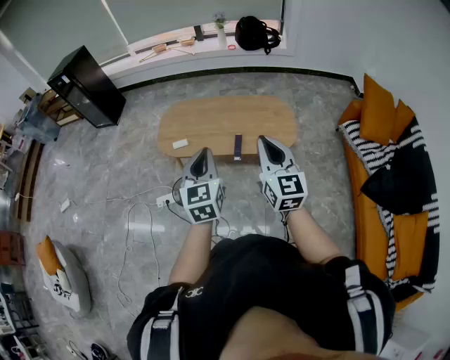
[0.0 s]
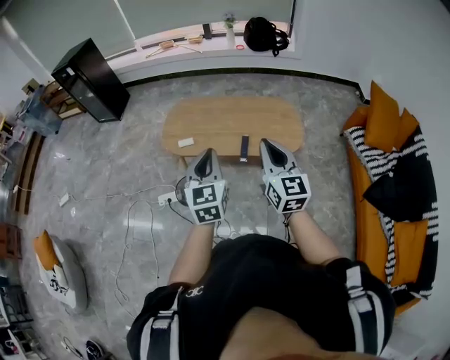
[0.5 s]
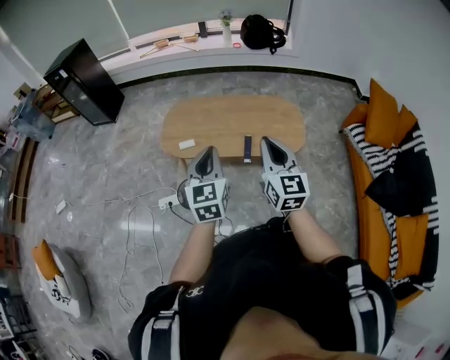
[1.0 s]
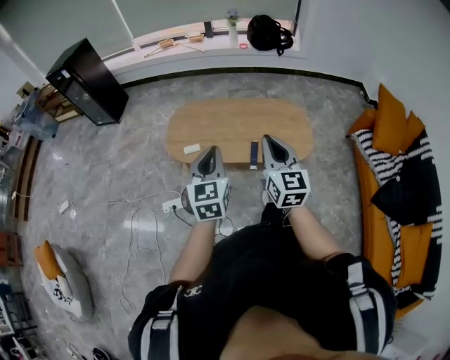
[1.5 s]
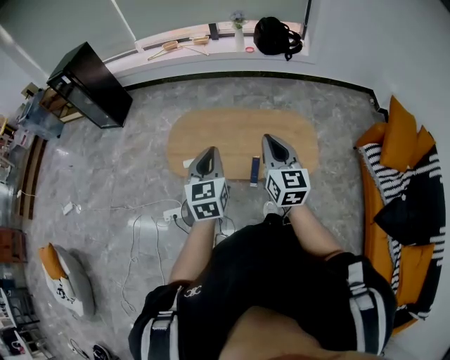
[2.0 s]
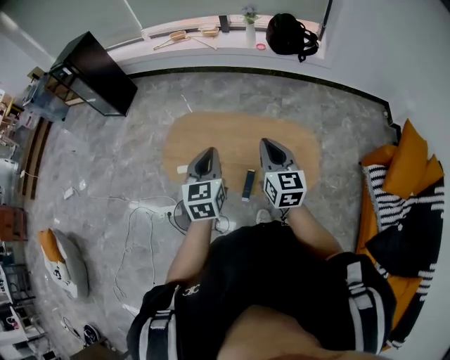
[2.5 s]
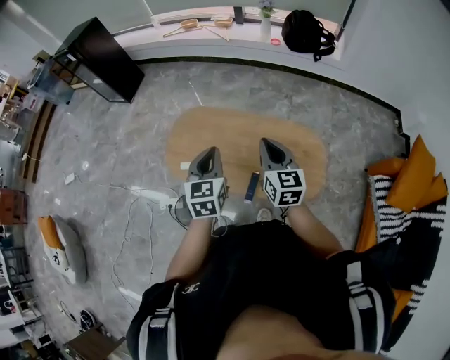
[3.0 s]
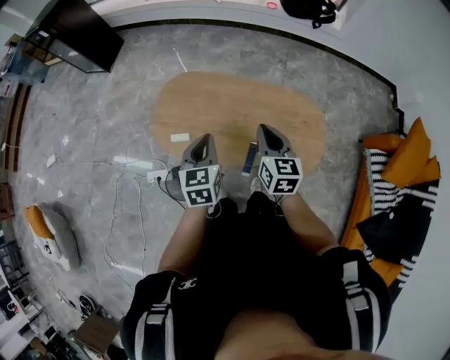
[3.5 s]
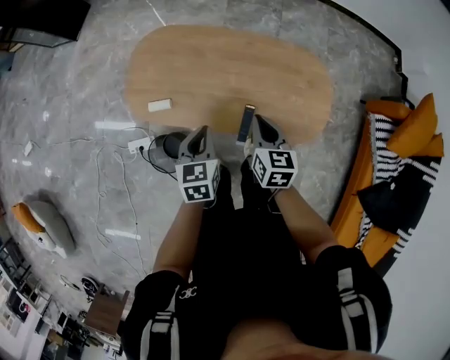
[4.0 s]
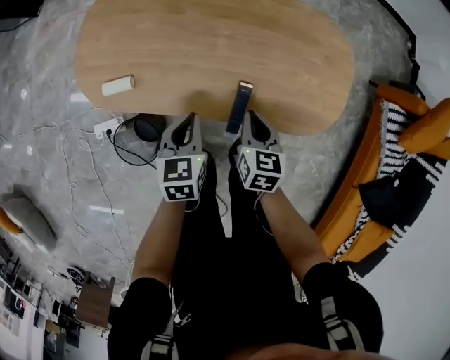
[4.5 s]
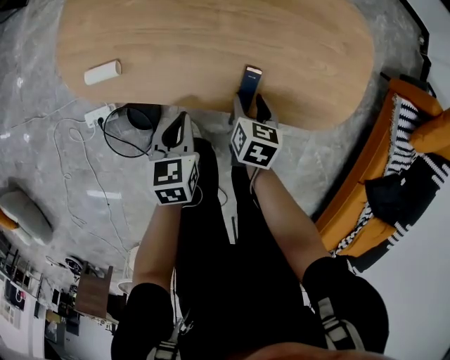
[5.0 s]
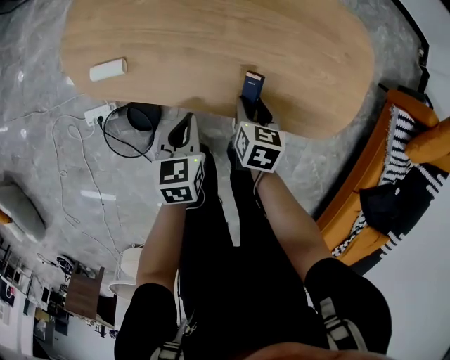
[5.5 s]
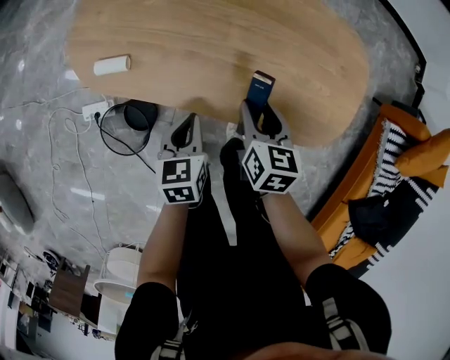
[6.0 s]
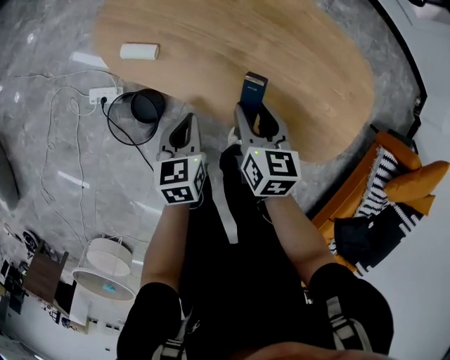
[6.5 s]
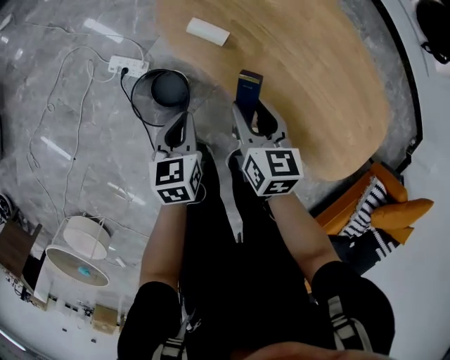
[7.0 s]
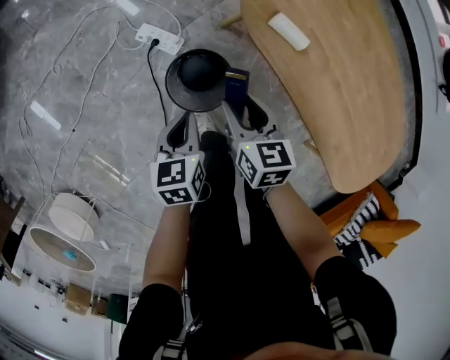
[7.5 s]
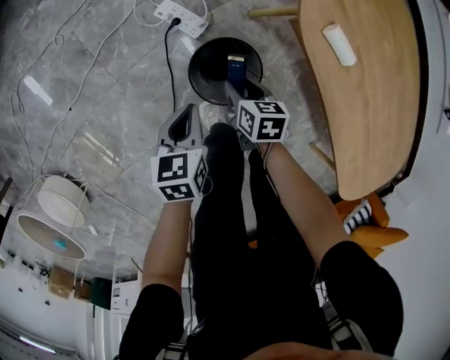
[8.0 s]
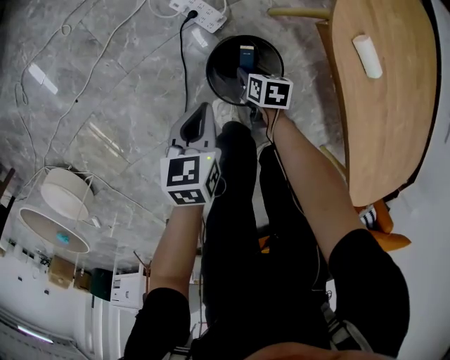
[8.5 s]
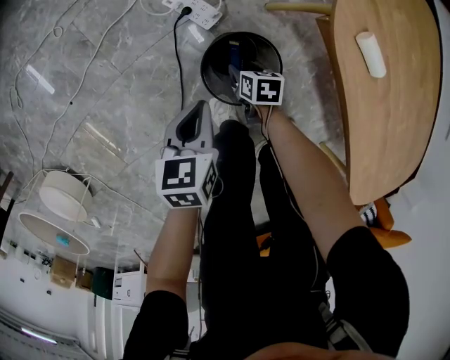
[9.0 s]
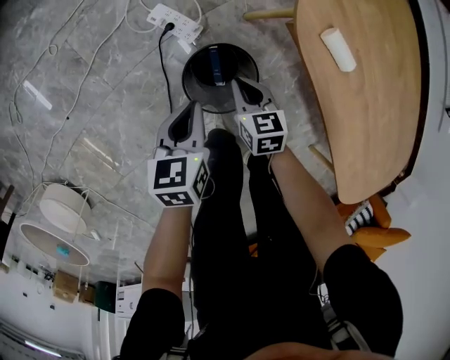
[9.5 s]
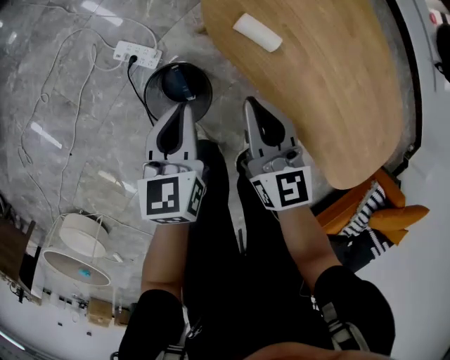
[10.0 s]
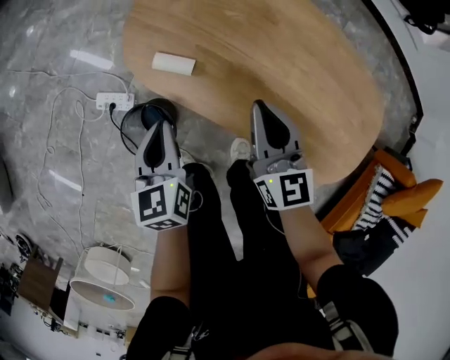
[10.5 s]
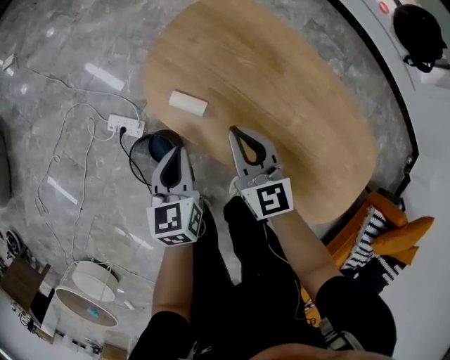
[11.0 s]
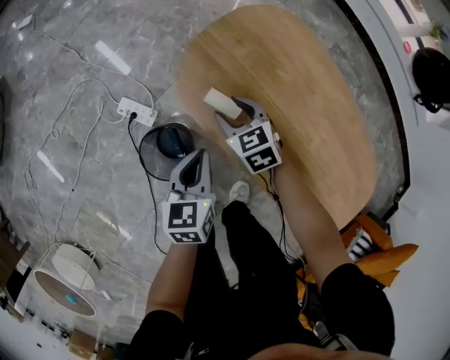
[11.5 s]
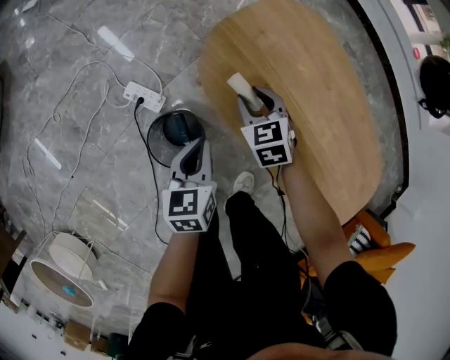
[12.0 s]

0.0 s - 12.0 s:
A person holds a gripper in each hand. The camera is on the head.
0.0 s - 2.0 s: The grippers both shift forward by roughly 20 cm.
2.0 s - 4.0 s: The grippers both shift downward and forward by about 30 cm. The right gripper tilts its fingers some 30 degrees downward. The left gripper swivels about 30 degrees.
4.0 s - 6.0 s: The two grippers go about 20 cm downward. The right gripper opens its fingers.
6.0 s - 8.0 s: Both grippers are carried roughly 50 cm. The left gripper changes its angle by about 40 degrees. Meanwhile the right gripper changes its angle by roughly 50 degrees.
8.0 s - 10.0 s: The right gripper heads upward and to the right, covering roughly 30 cm, points its fingers about 30 degrees further upward, and closes its fingers. Meanwhile the left gripper shifts roughly 20 cm to the right and upward.
10.0 s - 12.0 s: The right gripper is displaced forward and downward by approximately 15 cm, reaches about 20 cm to the right, then returns, changes its angle by some 40 degrees, and opens up. The left gripper goes about 5 cm to the right.

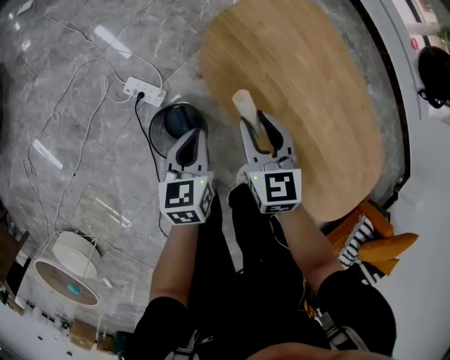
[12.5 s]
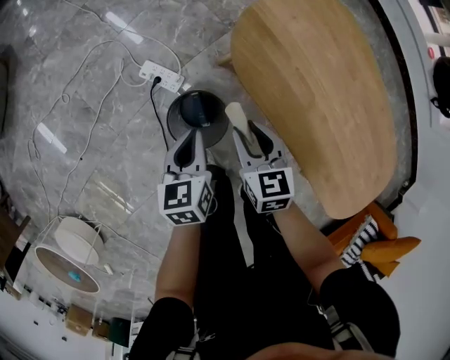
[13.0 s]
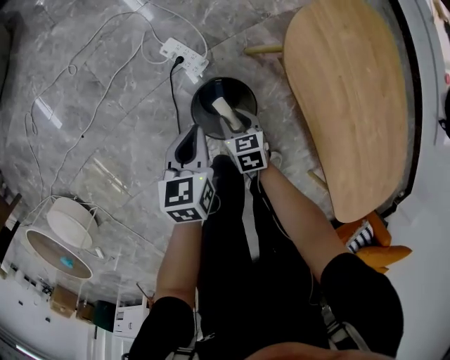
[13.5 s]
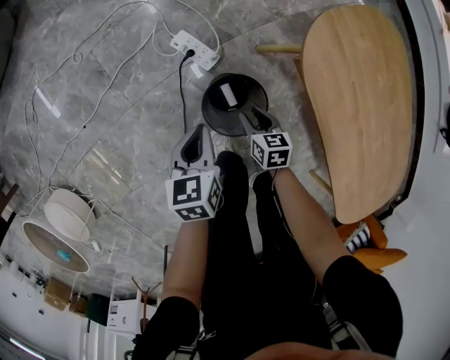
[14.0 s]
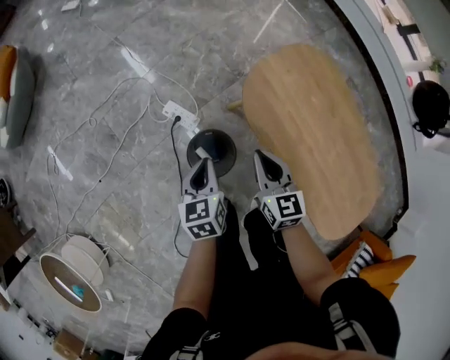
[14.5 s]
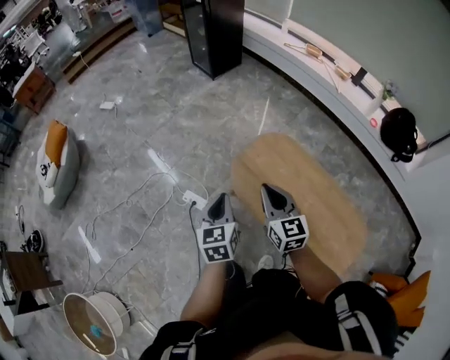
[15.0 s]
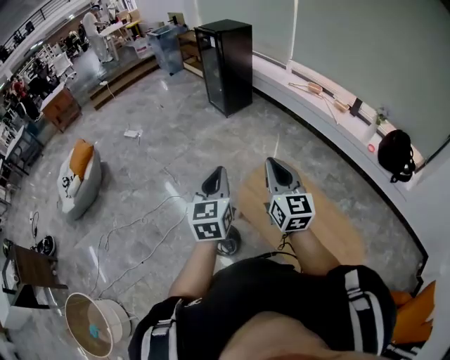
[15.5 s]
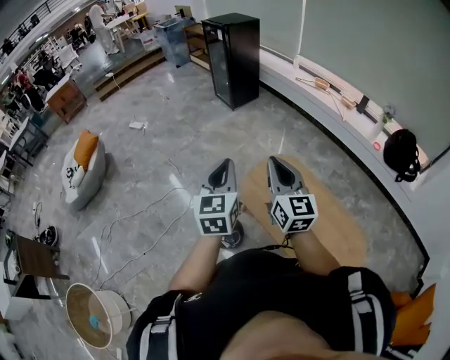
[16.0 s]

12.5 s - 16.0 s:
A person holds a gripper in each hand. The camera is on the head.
12.5 s - 14.5 s: The right gripper heads to the left, covering some 10 cm, reaches roughly 25 cm downward, then returns, and closes its fingers; the left gripper moves to the left and upward, roughly 15 cm.
14.5 s - 16.0 s: The grippers both shift upward by some 50 cm. The right gripper points its fingers approximately 30 degrees further upward. The left gripper angles its fingers upward, by some 30 degrees.

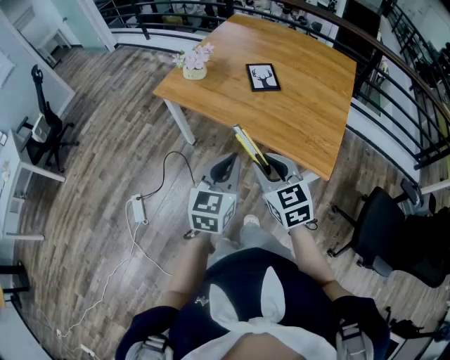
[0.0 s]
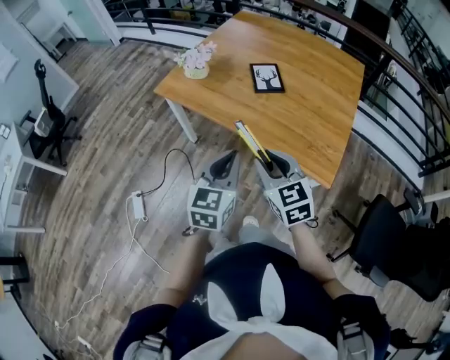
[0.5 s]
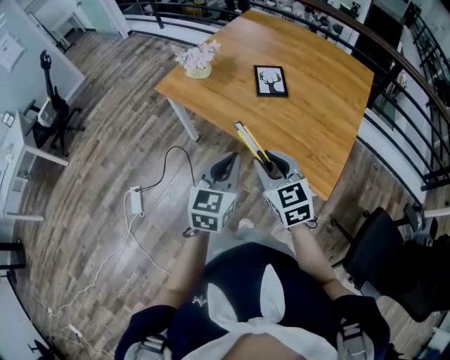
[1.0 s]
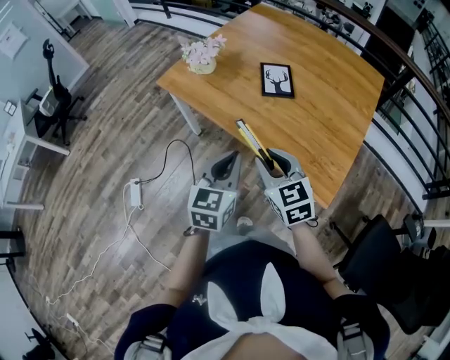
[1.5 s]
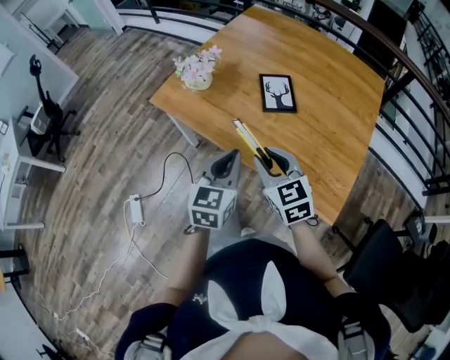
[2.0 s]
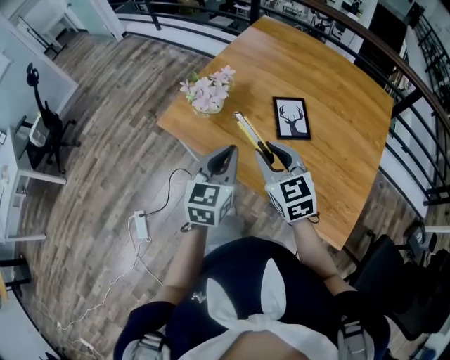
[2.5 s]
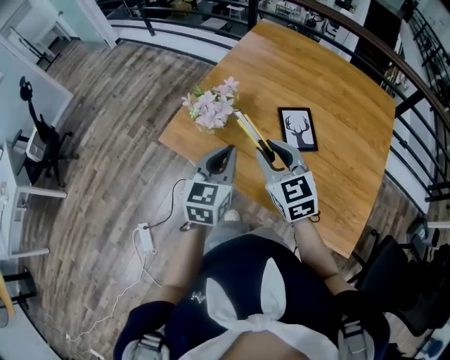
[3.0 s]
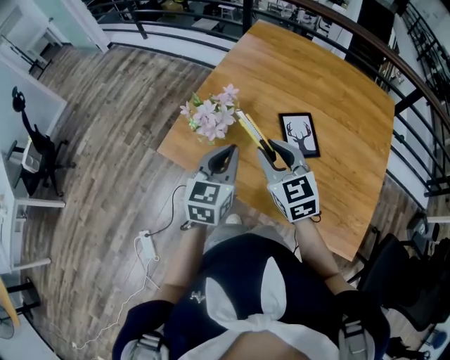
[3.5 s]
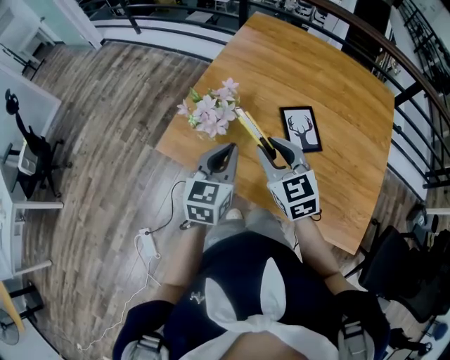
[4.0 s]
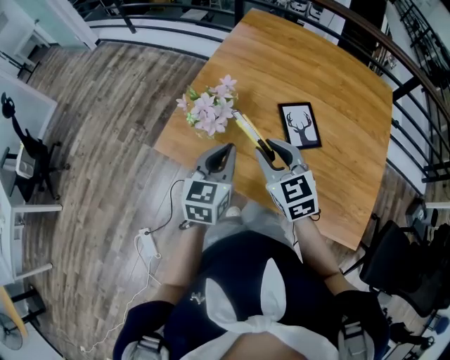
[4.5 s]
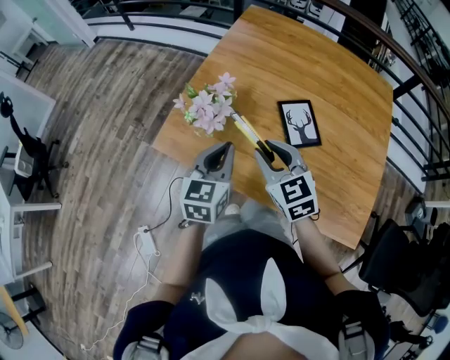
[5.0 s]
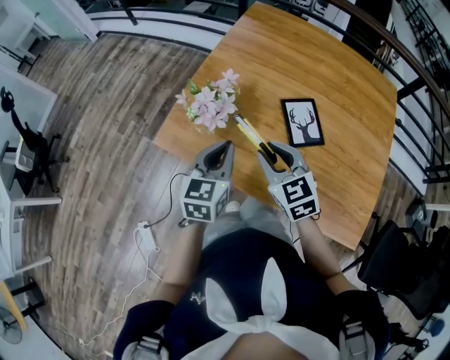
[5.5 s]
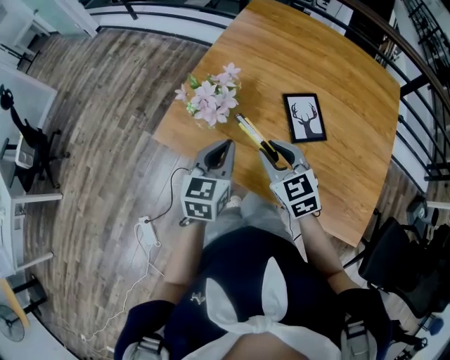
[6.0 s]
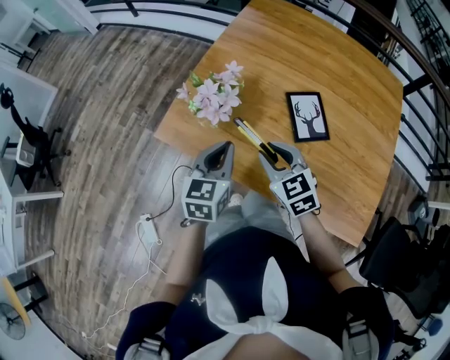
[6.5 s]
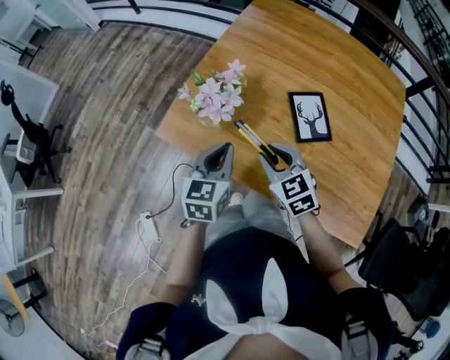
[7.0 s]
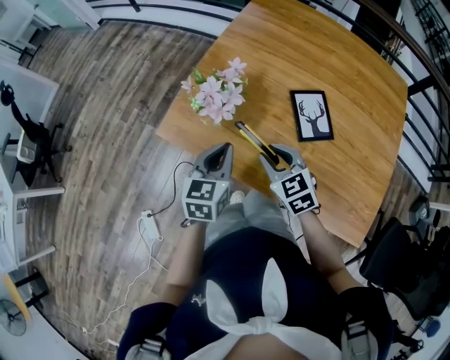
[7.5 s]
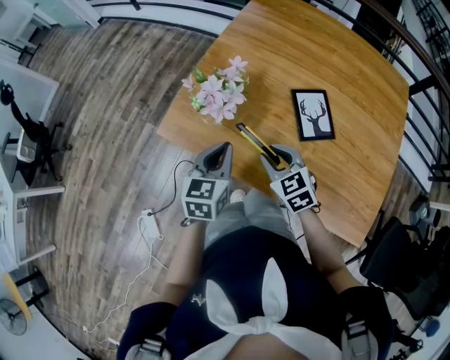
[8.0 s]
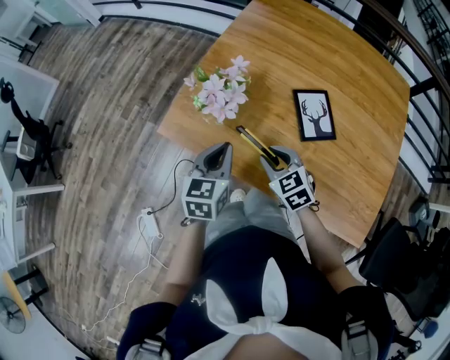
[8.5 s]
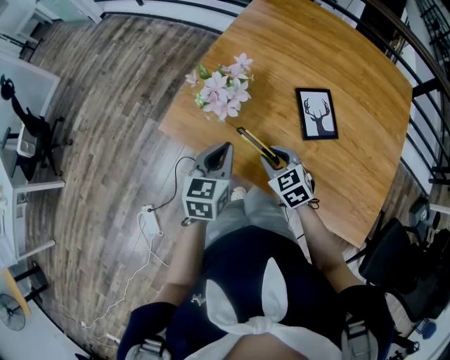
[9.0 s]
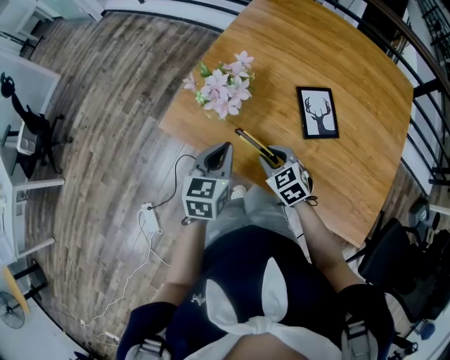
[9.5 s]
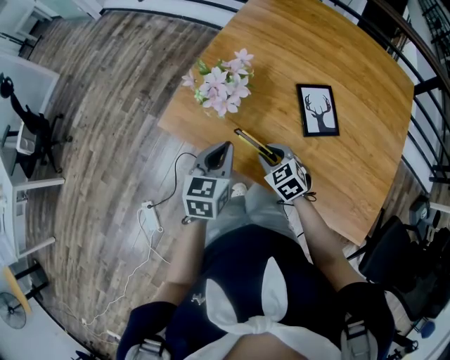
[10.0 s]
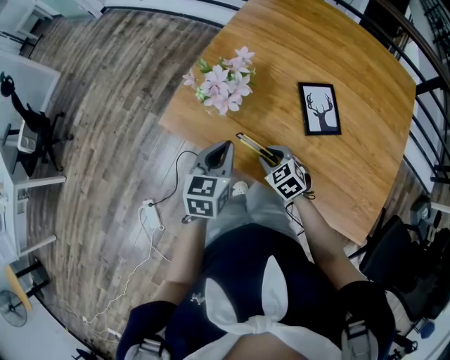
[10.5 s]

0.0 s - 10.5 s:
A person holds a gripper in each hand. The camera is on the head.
0.0 s - 2.0 s: Both grippers move forward, roughly 20 cm.
2.0 s - 4.0 s: The grippers both shift forward and to the left by about 25 cm.
4.0 s - 6.5 s: Both grippers move downward, roughly 5 cm.
6.5 s - 8.5 s: The right gripper travels downward by roughly 5 cm.
8.5 s - 10.5 s: The right gripper shifts about 10 cm downward.

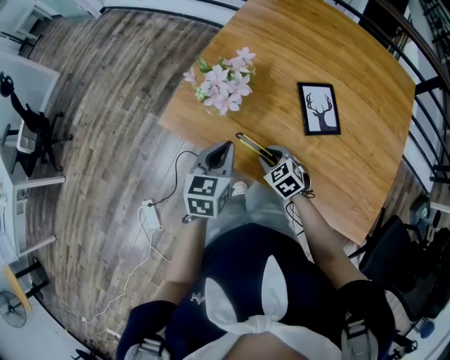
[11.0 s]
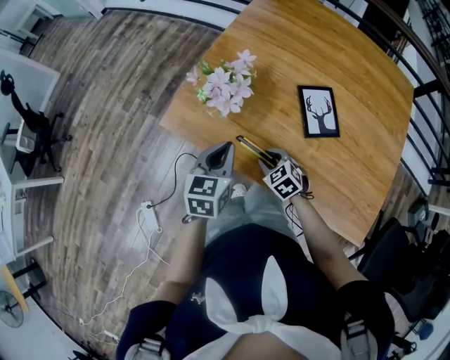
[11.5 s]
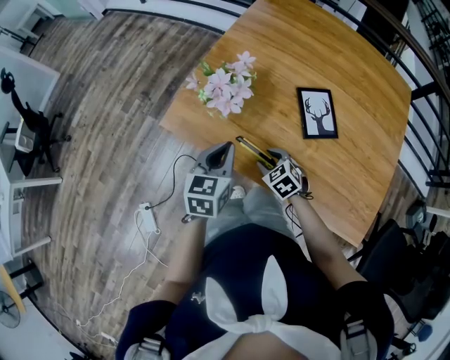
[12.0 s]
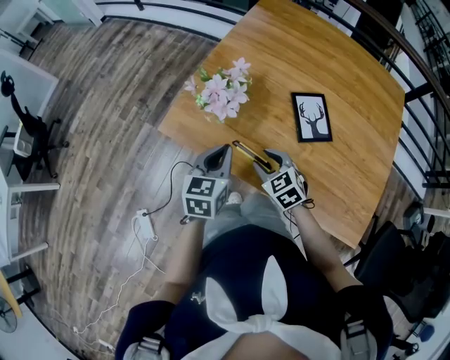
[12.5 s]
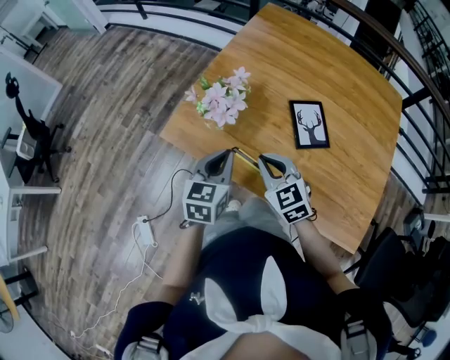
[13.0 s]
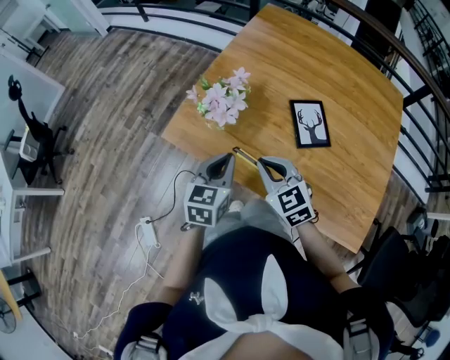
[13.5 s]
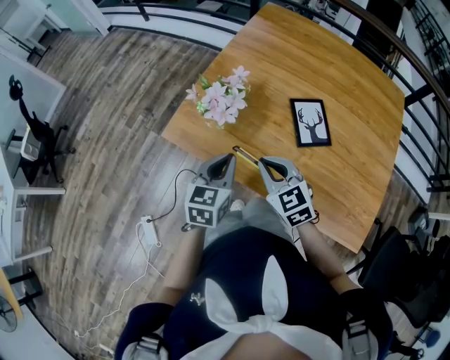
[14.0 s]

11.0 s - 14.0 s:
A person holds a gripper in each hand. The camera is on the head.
11.0 s - 12.5 s: The right gripper shifts approximately 10 cm upward.
12.5 s - 14.0 s: The right gripper travels upward by roughly 10 cm, and closes.
